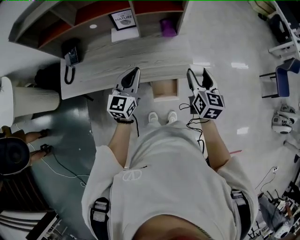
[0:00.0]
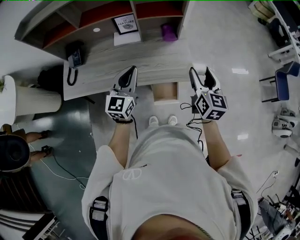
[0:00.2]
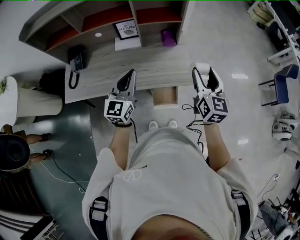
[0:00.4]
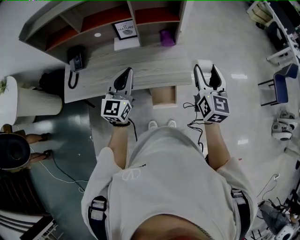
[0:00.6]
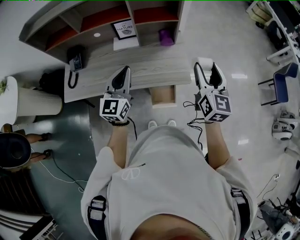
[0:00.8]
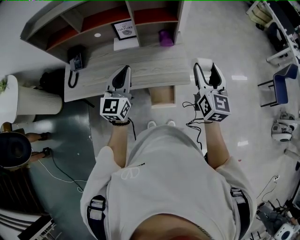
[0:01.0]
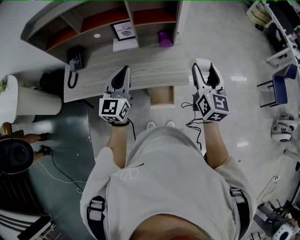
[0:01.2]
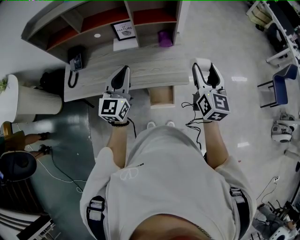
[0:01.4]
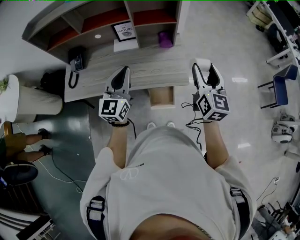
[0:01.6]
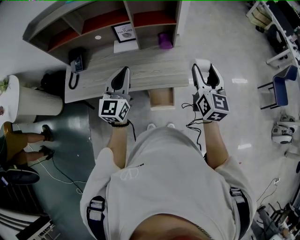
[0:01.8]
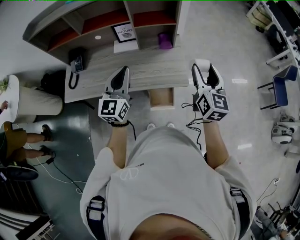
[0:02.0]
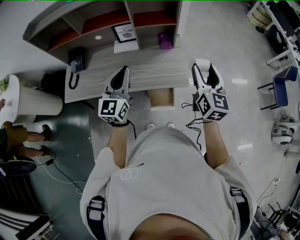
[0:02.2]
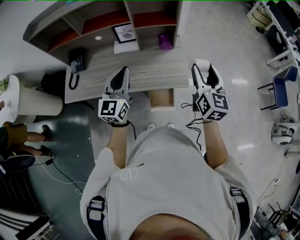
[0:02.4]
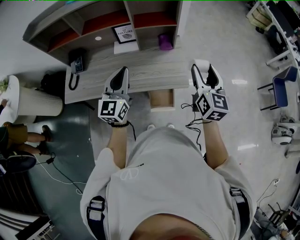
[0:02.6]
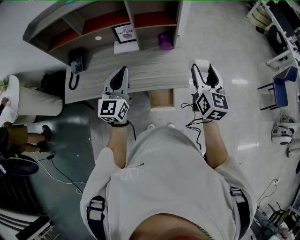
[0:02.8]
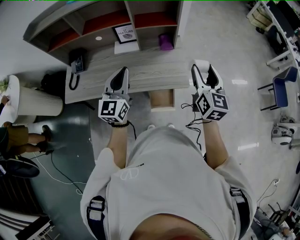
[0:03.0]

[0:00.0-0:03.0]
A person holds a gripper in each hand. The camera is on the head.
0:00.0 to 0:01.6: The two grippers go roughly 10 cm upward.
0:01.6 to 0:03.0: Neither gripper changes place.

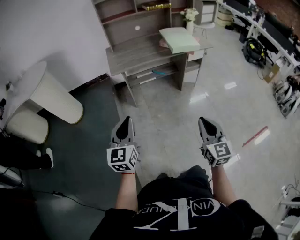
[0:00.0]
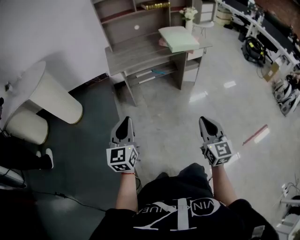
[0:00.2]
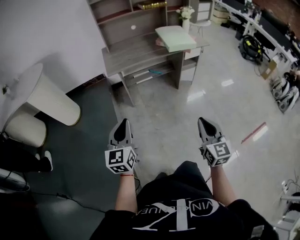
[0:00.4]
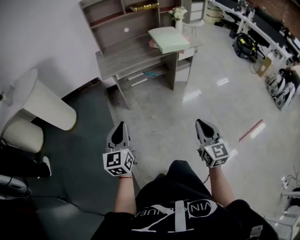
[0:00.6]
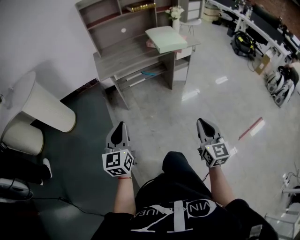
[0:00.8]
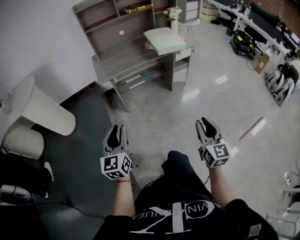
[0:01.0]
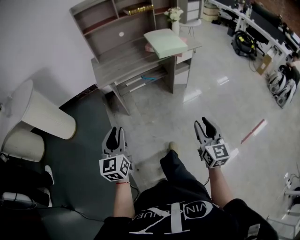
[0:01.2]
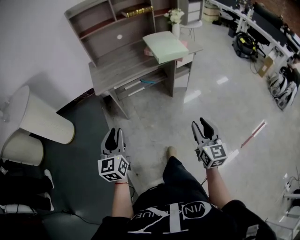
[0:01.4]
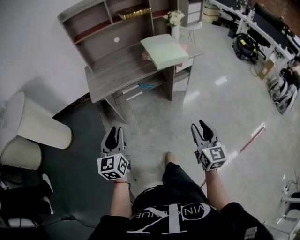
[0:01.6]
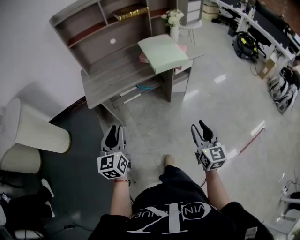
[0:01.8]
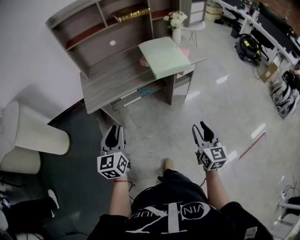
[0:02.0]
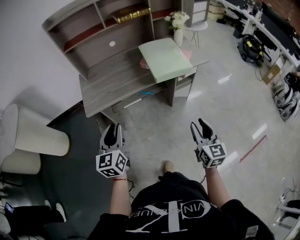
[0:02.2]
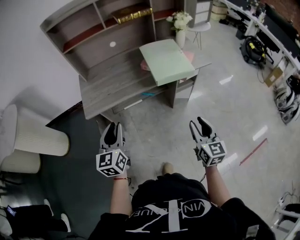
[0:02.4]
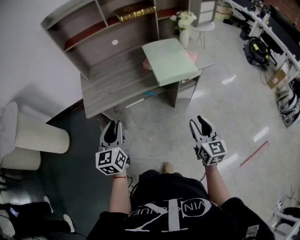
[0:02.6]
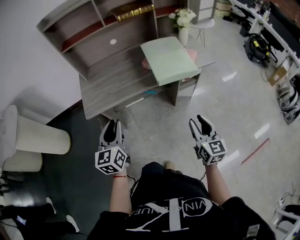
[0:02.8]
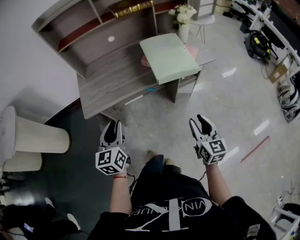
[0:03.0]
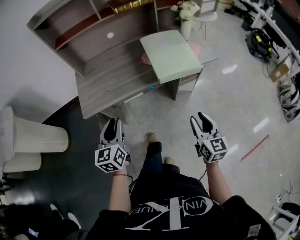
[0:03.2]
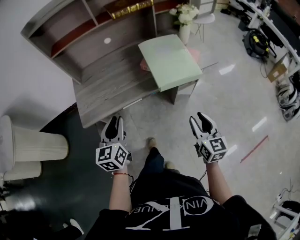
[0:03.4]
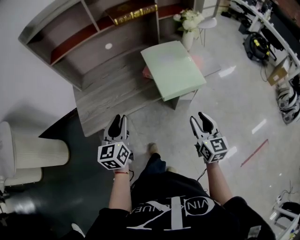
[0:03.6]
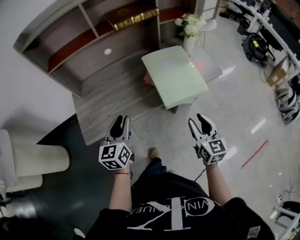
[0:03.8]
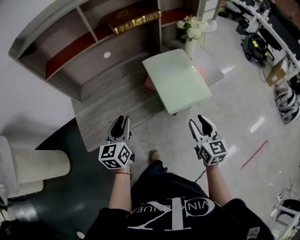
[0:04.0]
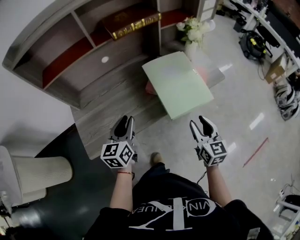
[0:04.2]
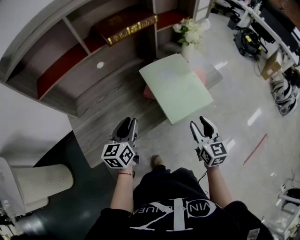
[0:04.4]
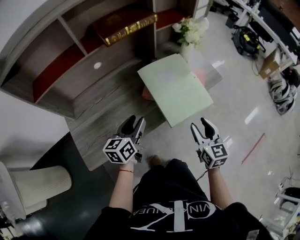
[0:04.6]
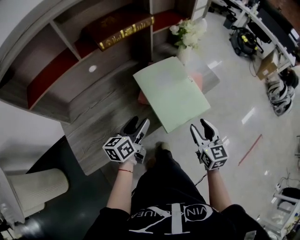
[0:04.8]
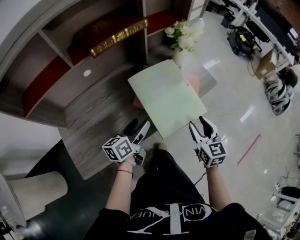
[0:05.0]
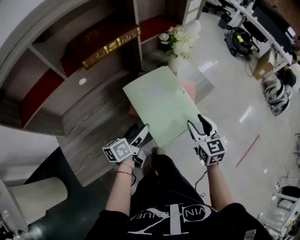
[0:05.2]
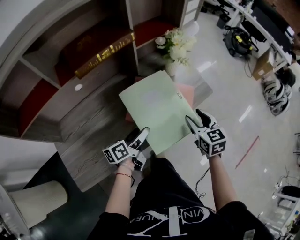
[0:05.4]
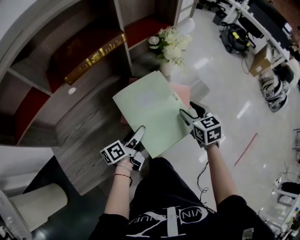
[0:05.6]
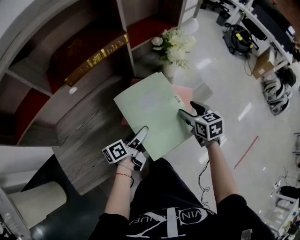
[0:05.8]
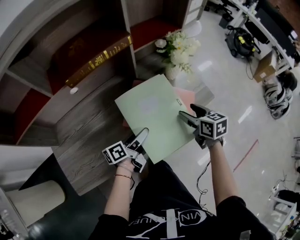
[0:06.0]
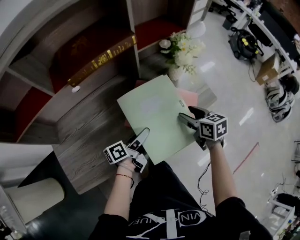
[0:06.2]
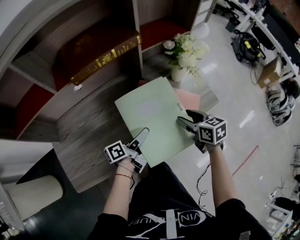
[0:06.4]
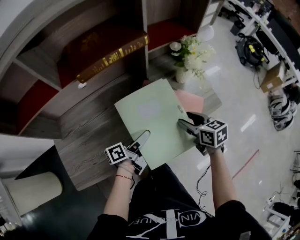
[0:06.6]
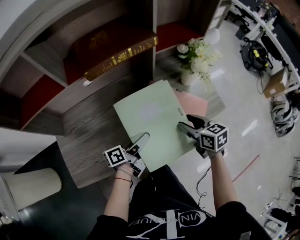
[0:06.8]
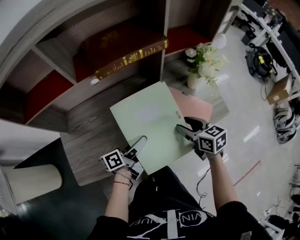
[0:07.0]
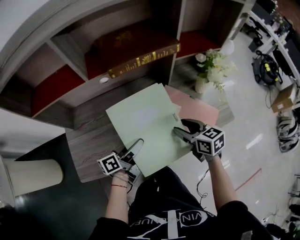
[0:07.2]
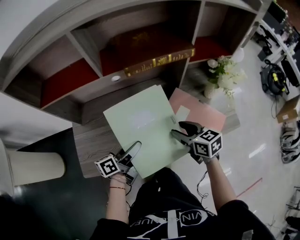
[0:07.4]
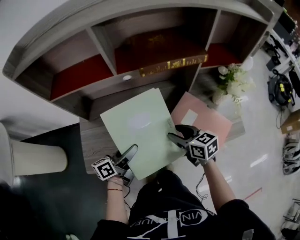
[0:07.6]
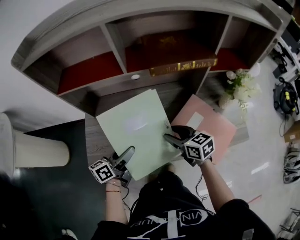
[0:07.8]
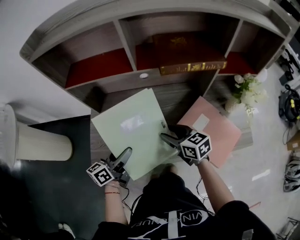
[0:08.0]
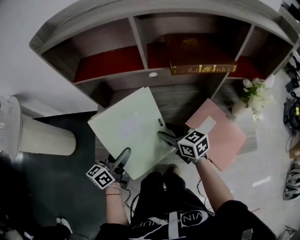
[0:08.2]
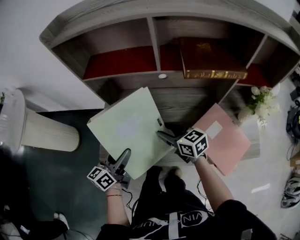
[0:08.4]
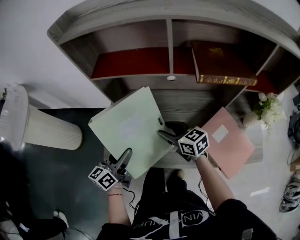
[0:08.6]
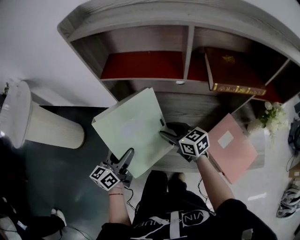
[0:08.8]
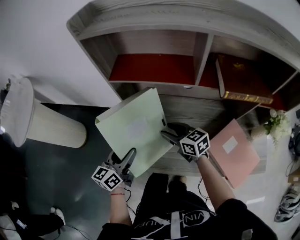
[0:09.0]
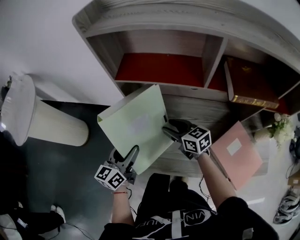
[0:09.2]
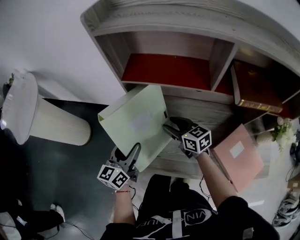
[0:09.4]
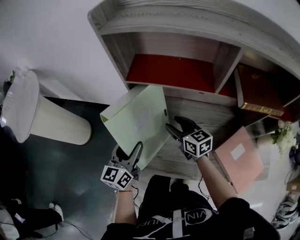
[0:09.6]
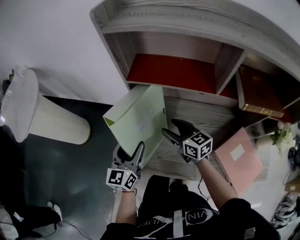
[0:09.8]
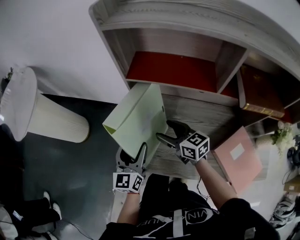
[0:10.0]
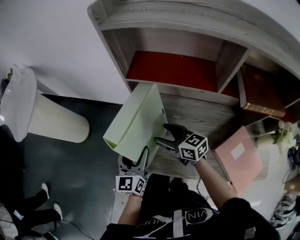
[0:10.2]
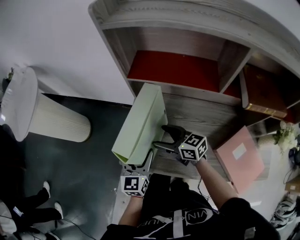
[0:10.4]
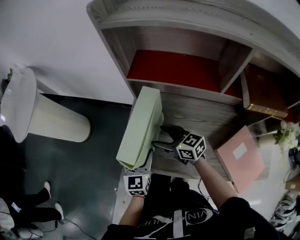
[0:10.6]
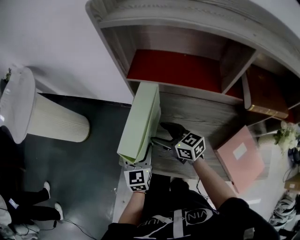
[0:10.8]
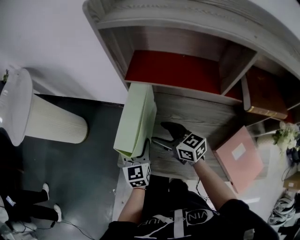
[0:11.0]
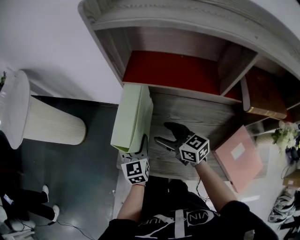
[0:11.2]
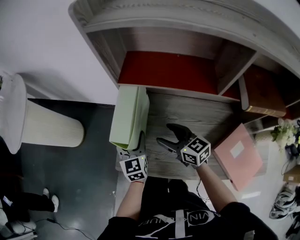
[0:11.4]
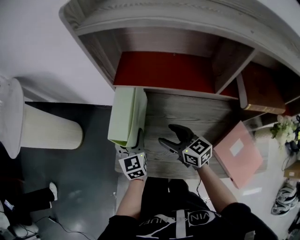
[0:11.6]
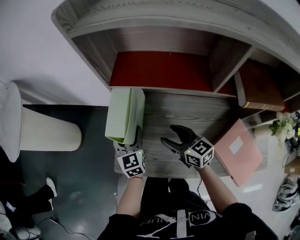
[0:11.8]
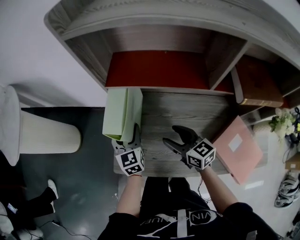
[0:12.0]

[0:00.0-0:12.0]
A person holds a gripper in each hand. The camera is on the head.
0:00.0 to 0:01.6: The right gripper moves forward and to the right, some 20 cm. Meanwhile the left gripper goes approximately 20 cm forward.
0:01.6 to 0:03.0: Both grippers move forward, some 20 cm.
0:03.0 to 0:04.4: The grippers both shift forward by about 25 cm. The left gripper swivels roughly 20 degrees.
0:04.4 to 0:06.0: The right gripper moves forward, some 20 cm, and turns by about 30 degrees, while the left gripper is displaced forward, to the right and downward by some 20 cm, rotates around the line of its fingers by some 40 degrees, counterclockwise from behind, and opens up.
0:06.0 to 0:07.6: The right gripper shifts by about 25 cm, and turns by some 40 degrees, while the left gripper shifts by some 20 cm, and turns by roughly 20 degrees.
0:07.6 to 0:09.0: The left gripper ends up some 20 cm from where it was, and rotates about 40 degrees; the right gripper changes place by some 25 cm, and swivels some 20 degrees.
0:09.0 to 0:10.4: The right gripper shifts some 10 cm to the left, and opens its fingers; the left gripper changes its angle by roughly 30 degrees.
0:10.4 to 0:12.0: The left gripper shifts some 10 cm forward. Meanwhile the right gripper moves to the right, about 10 cm, and changes its angle by about 20 degrees.

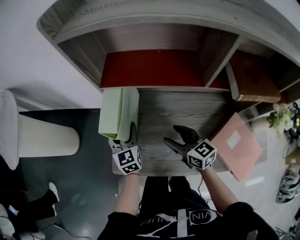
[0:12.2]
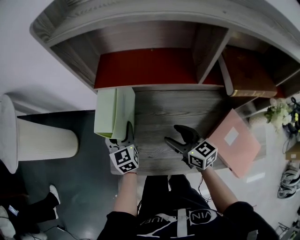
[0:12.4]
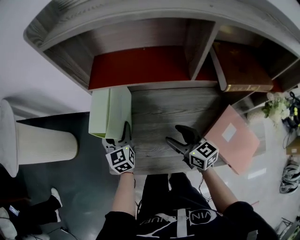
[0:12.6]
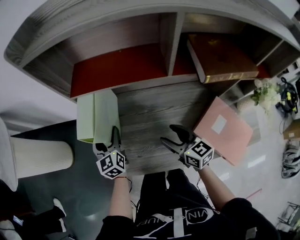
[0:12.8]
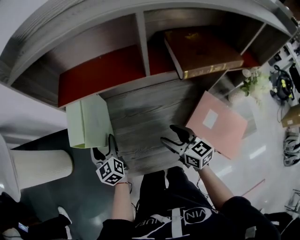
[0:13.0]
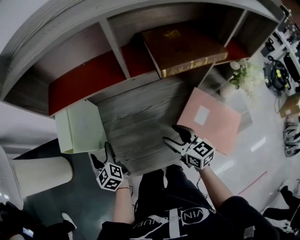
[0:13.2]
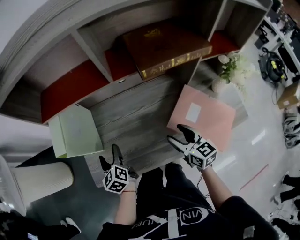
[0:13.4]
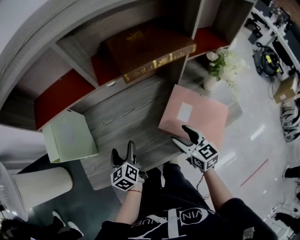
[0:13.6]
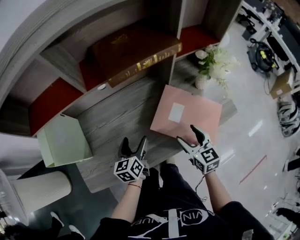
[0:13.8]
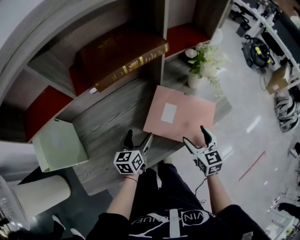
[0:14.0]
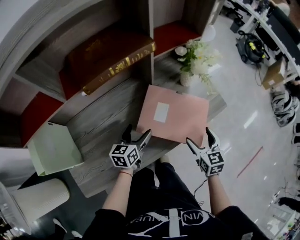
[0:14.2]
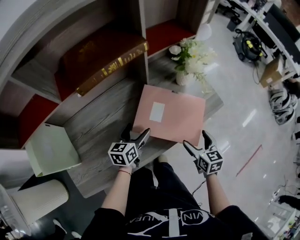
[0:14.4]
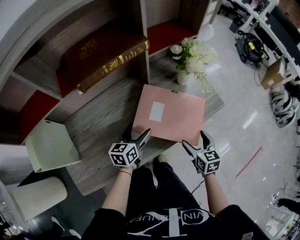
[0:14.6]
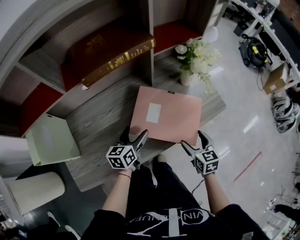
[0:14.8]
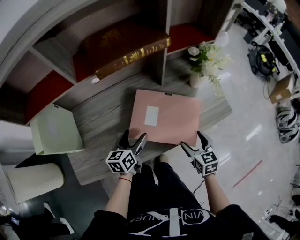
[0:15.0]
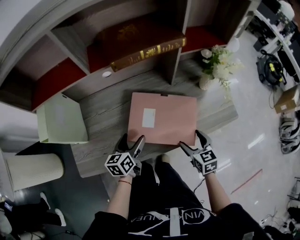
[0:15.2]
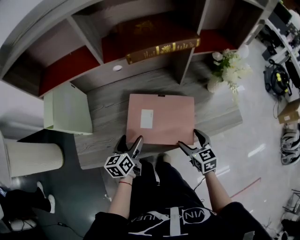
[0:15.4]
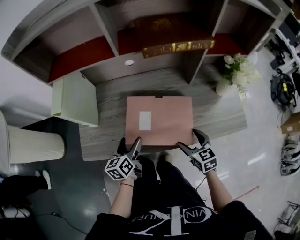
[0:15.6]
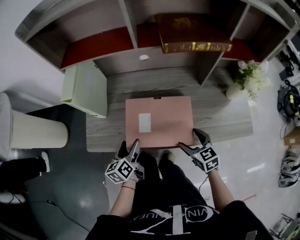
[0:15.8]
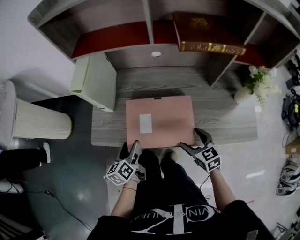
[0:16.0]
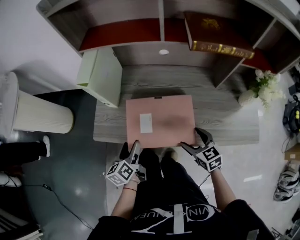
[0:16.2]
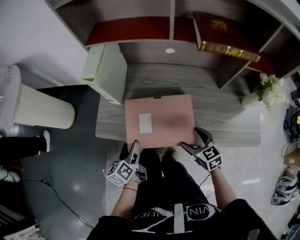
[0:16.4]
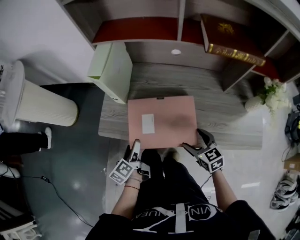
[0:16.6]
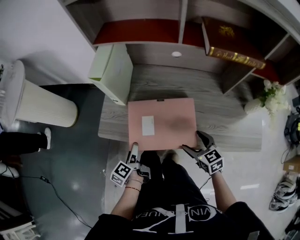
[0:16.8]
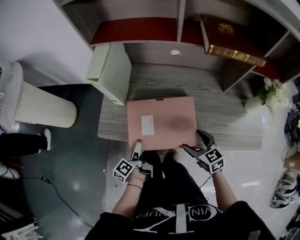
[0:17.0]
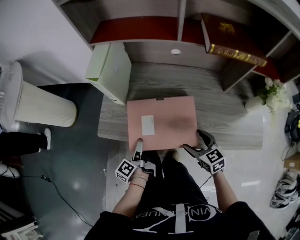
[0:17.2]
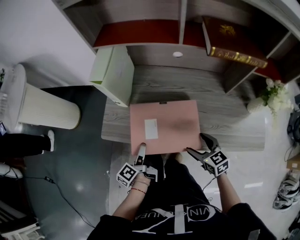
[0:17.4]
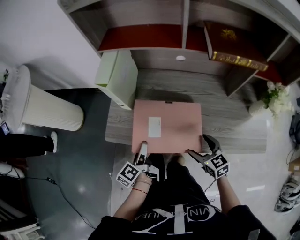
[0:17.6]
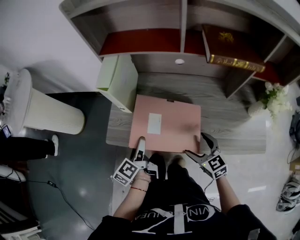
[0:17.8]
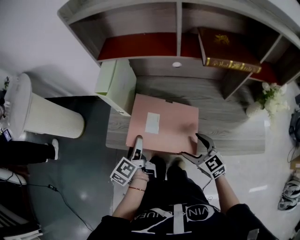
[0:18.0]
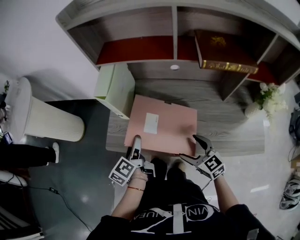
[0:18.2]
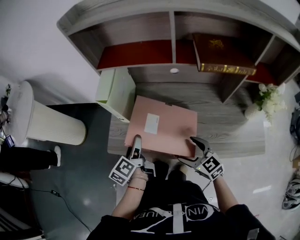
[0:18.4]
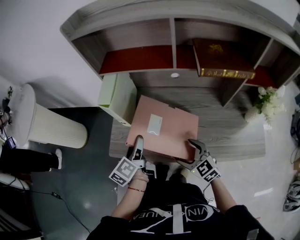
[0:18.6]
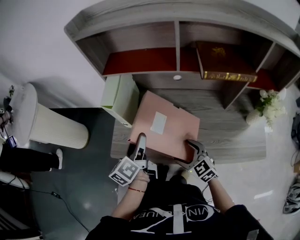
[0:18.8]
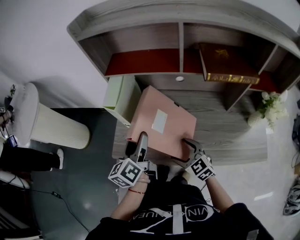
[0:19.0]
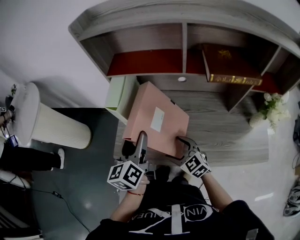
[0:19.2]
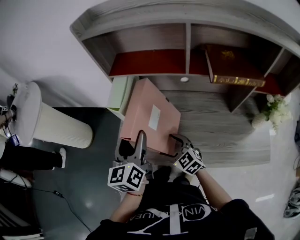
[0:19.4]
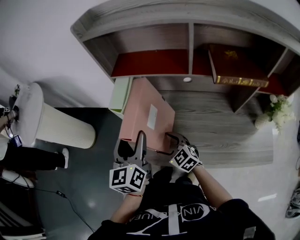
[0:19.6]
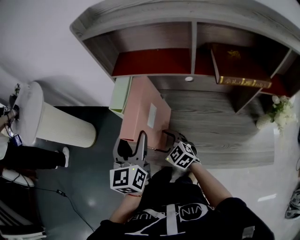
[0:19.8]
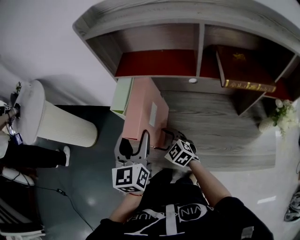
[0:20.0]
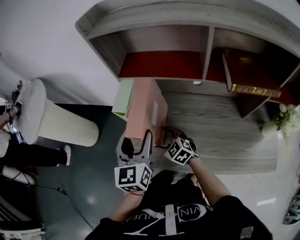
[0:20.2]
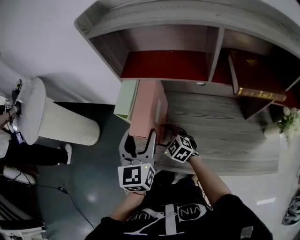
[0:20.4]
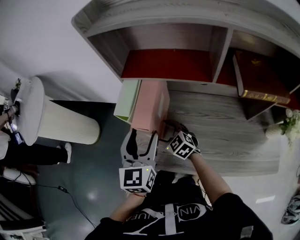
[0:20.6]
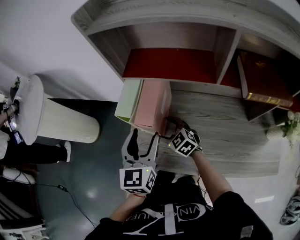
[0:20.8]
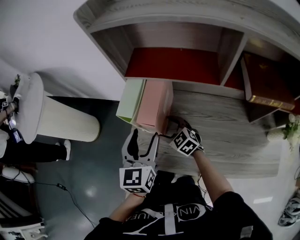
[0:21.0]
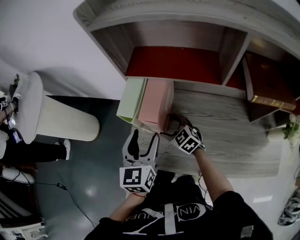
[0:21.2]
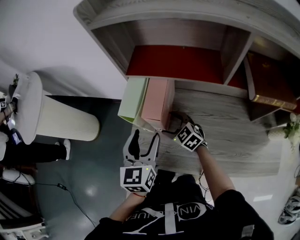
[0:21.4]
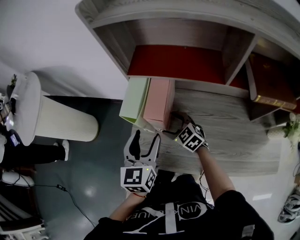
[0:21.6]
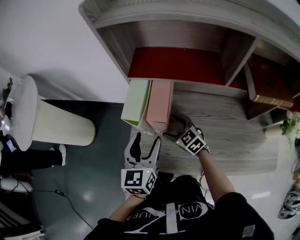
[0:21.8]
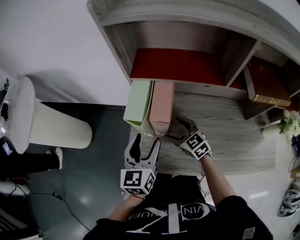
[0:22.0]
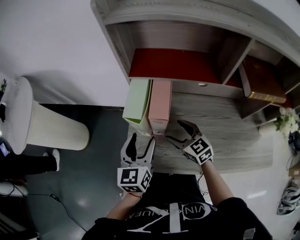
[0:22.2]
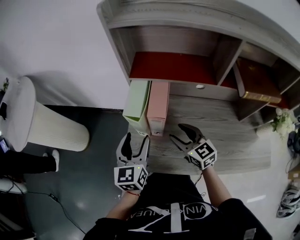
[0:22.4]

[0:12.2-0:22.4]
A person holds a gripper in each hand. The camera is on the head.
0:12.2 to 0:13.6: The left gripper ends up about 25 cm from where it was, and rotates some 30 degrees, while the right gripper shifts by approximately 30 cm, and swivels roughly 30 degrees.
0:13.6 to 0:15.2: The left gripper changes its angle by roughly 30 degrees.
0:15.2 to 0:16.6: The right gripper changes place by approximately 15 cm, and turns by about 40 degrees, while the left gripper moves roughly 25 cm, and rotates roughly 60 degrees.
0:16.6 to 0:18.0: The right gripper goes about 5 cm upward; the left gripper shifts roughly 10 cm upward and forward.
0:18.0 to 0:19.4: The right gripper goes about 15 cm to the left and forward, while the left gripper travels upward by roughly 15 cm, and turns by about 40 degrees.
0:19.4 to 0:21.0: The left gripper moves forward, about 5 cm; the right gripper shifts some 15 cm forward.
0:21.0 to 0:22.4: The right gripper is displaced upward and backward by about 10 cm, and swivels about 30 degrees, while the left gripper ends up approximately 5 cm from where it was.
